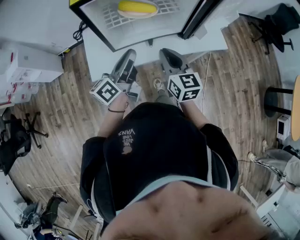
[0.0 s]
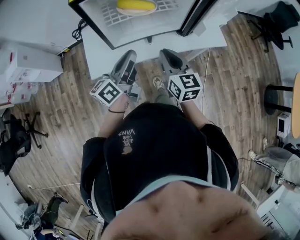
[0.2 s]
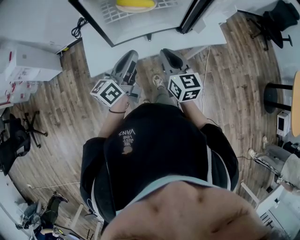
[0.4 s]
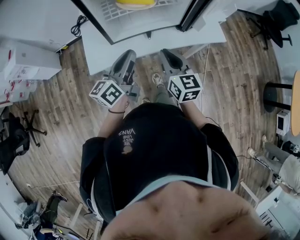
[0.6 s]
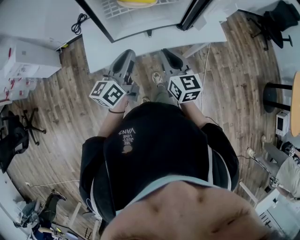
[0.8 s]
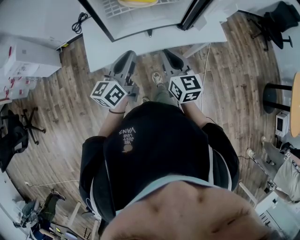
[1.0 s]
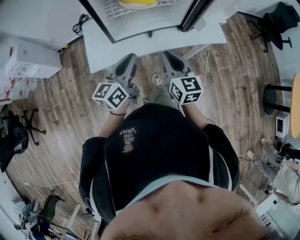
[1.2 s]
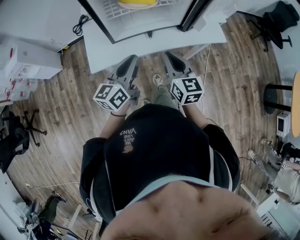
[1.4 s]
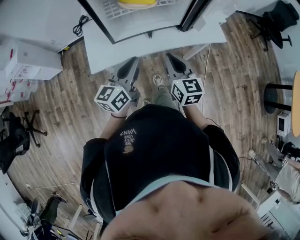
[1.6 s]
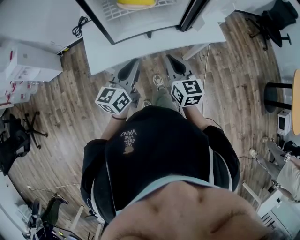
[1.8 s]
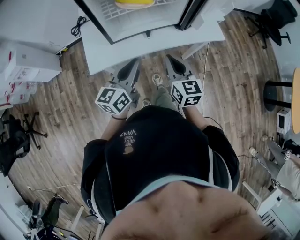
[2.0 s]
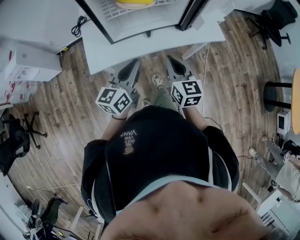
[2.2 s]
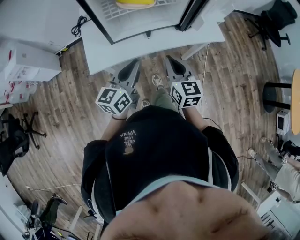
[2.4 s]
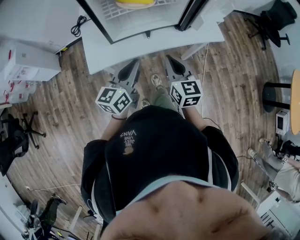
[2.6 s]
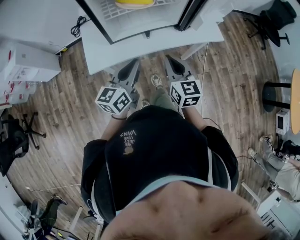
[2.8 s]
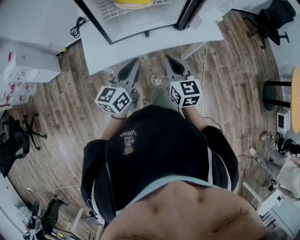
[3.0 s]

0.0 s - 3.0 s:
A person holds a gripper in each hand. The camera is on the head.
0.0 s - 1.6 s: The two grippers go about 5 cm backward. The left gripper rotates roughly 30 degrees.
1.6 s - 3.0 s: There are only small adjustments of the grippers.

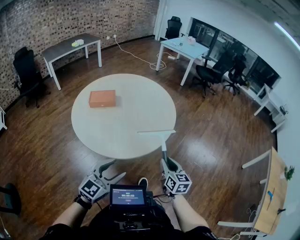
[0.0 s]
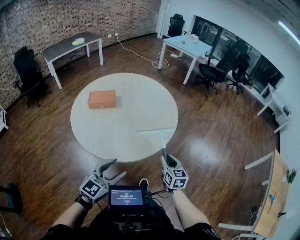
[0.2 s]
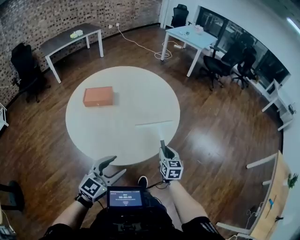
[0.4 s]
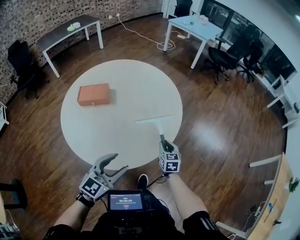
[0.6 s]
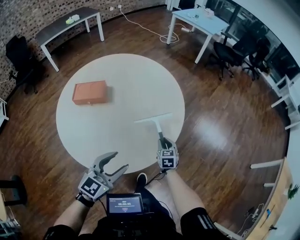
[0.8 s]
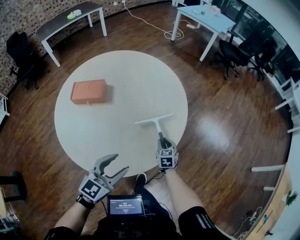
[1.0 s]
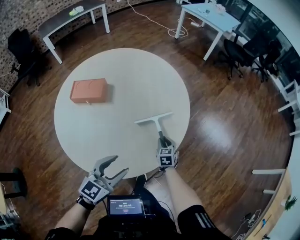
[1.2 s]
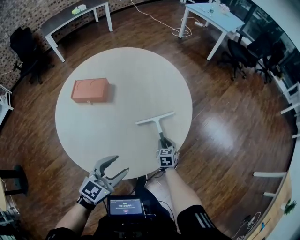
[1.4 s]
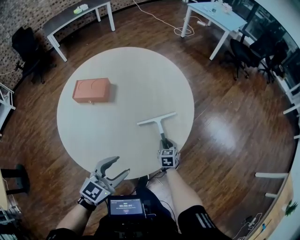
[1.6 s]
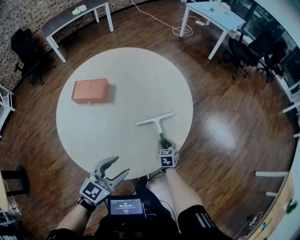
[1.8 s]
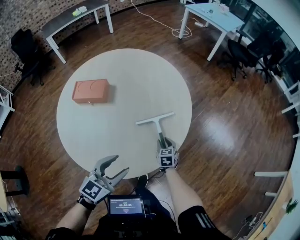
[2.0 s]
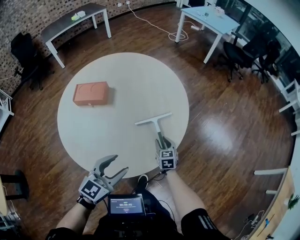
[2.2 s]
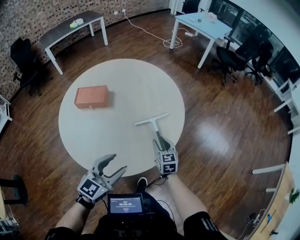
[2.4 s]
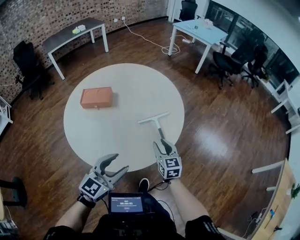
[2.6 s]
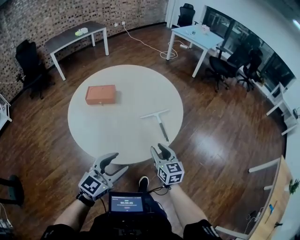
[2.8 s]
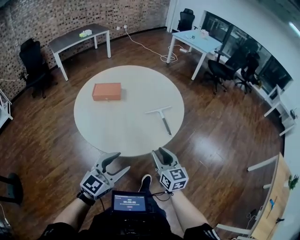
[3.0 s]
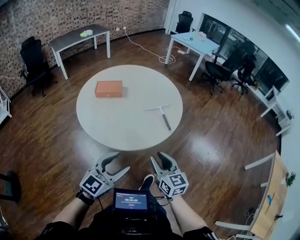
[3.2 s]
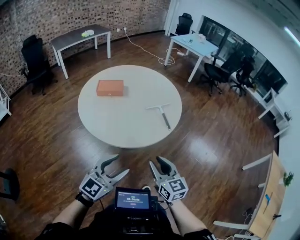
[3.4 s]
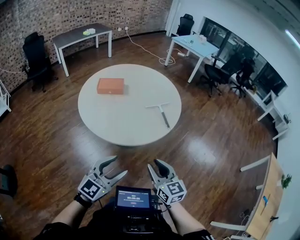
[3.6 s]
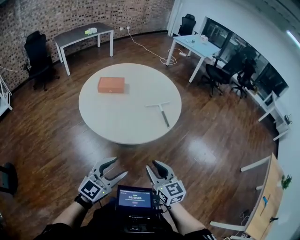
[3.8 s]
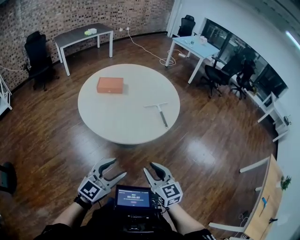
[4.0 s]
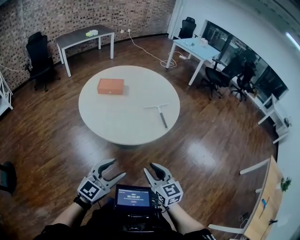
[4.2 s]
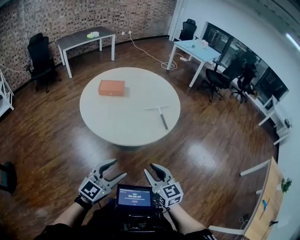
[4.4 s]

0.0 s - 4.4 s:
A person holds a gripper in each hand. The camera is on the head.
0.0 s - 1.4 s: The right gripper is displaced forward and downward by some 50 cm, and rotates roughly 30 degrees; the left gripper is displaced forward by some 30 cm.
1.4 s - 3.0 s: The right gripper goes about 40 cm backward and upward, and tips its fingers upward by about 30 degrees. The left gripper moves backward and upward, about 25 cm.
3.0 s - 4.4 s: Both grippers move backward, roughly 15 cm.

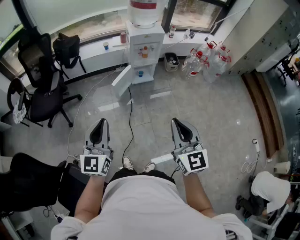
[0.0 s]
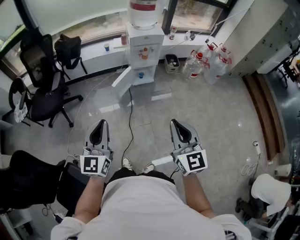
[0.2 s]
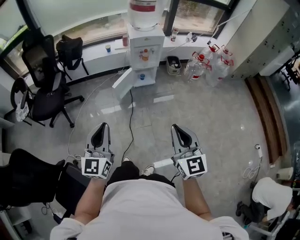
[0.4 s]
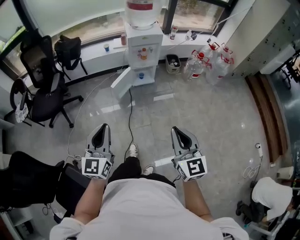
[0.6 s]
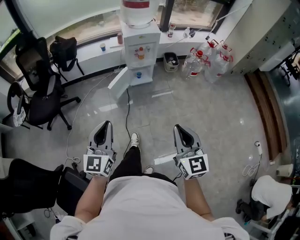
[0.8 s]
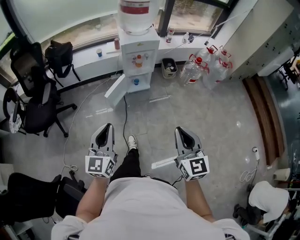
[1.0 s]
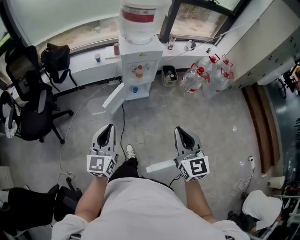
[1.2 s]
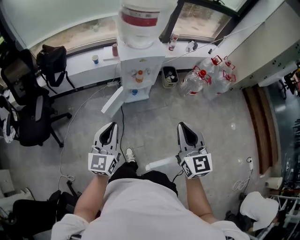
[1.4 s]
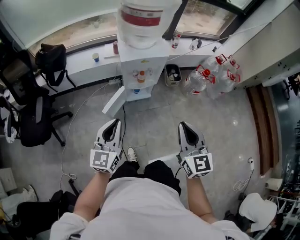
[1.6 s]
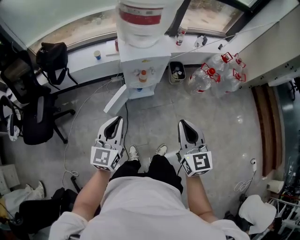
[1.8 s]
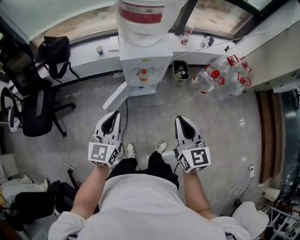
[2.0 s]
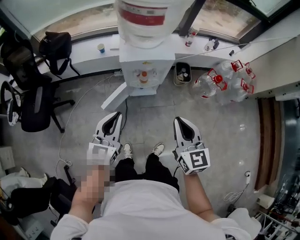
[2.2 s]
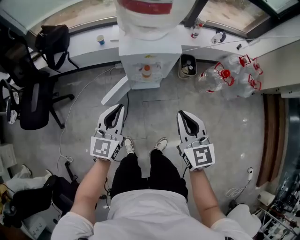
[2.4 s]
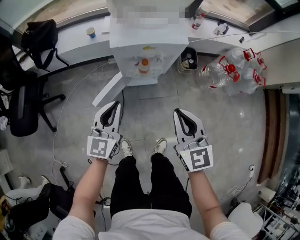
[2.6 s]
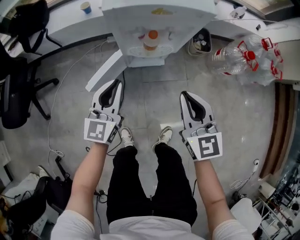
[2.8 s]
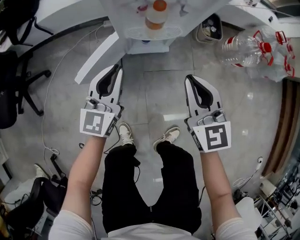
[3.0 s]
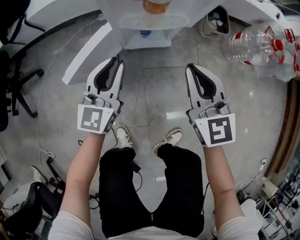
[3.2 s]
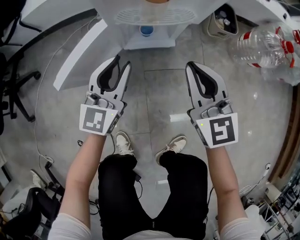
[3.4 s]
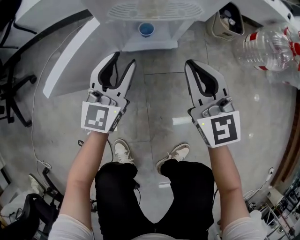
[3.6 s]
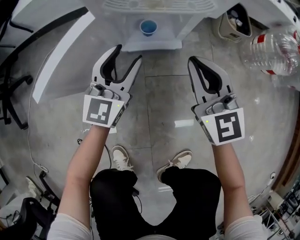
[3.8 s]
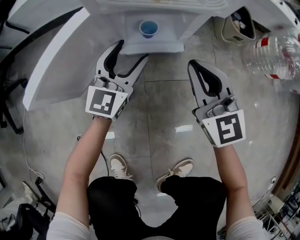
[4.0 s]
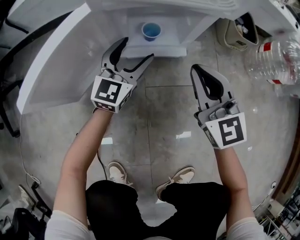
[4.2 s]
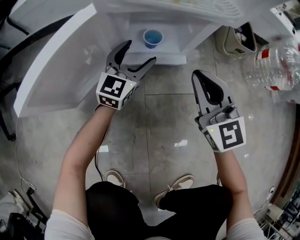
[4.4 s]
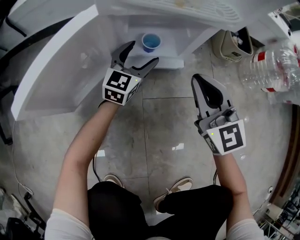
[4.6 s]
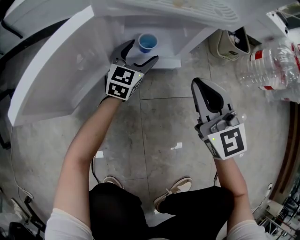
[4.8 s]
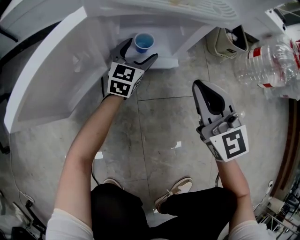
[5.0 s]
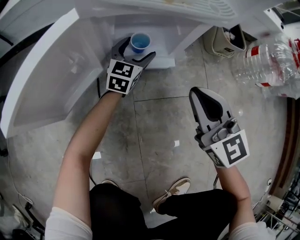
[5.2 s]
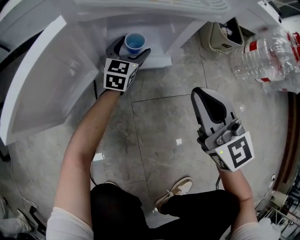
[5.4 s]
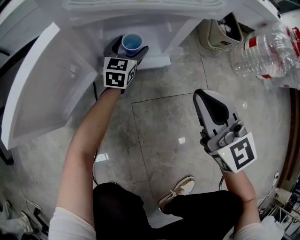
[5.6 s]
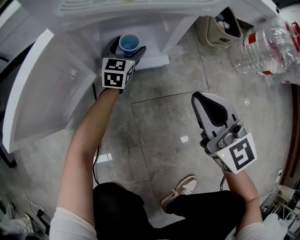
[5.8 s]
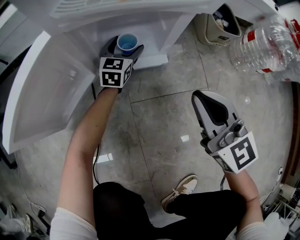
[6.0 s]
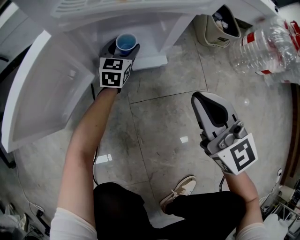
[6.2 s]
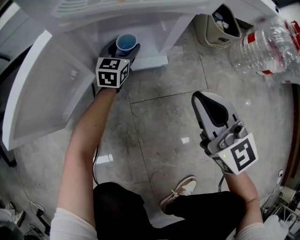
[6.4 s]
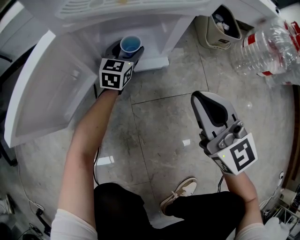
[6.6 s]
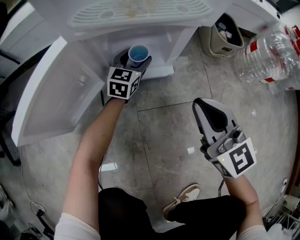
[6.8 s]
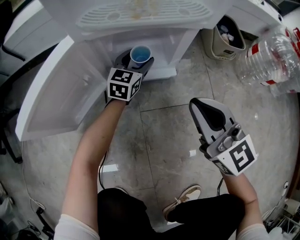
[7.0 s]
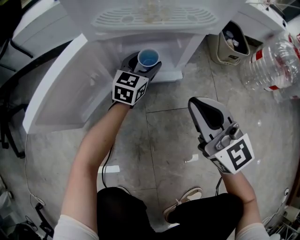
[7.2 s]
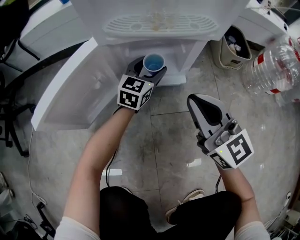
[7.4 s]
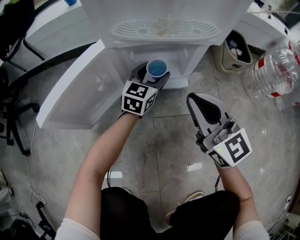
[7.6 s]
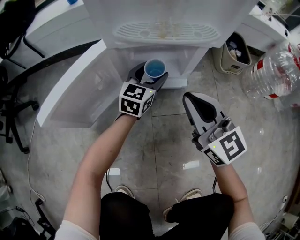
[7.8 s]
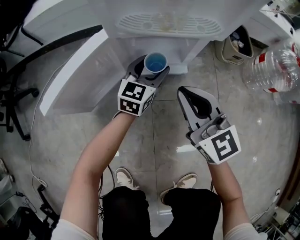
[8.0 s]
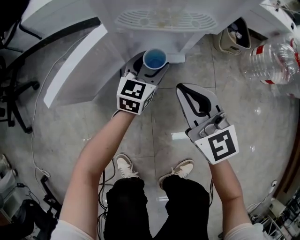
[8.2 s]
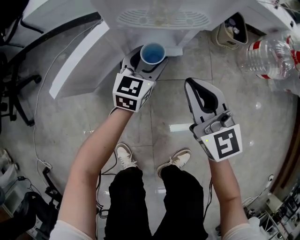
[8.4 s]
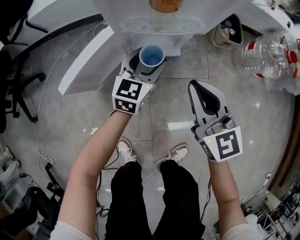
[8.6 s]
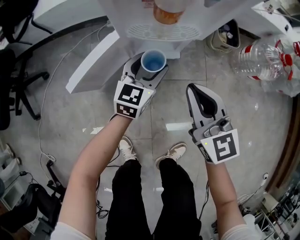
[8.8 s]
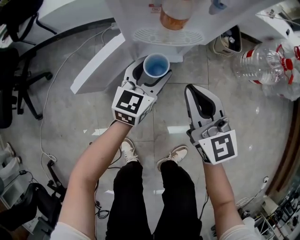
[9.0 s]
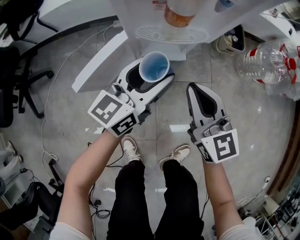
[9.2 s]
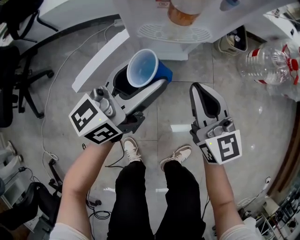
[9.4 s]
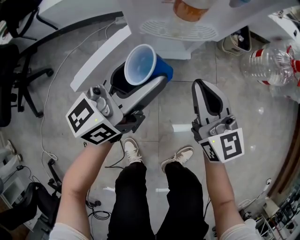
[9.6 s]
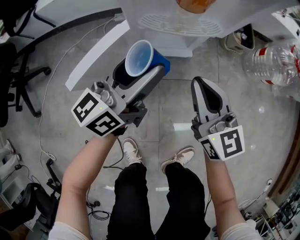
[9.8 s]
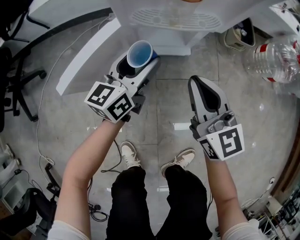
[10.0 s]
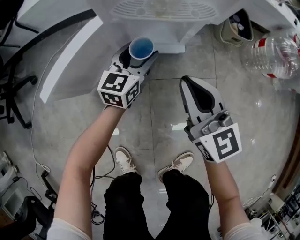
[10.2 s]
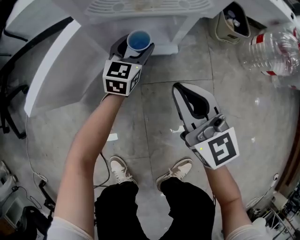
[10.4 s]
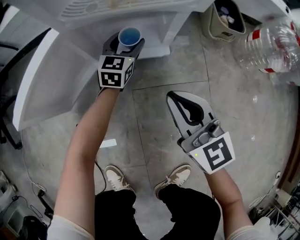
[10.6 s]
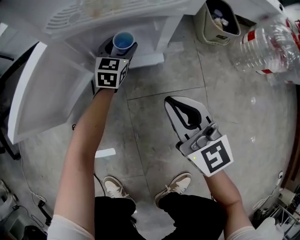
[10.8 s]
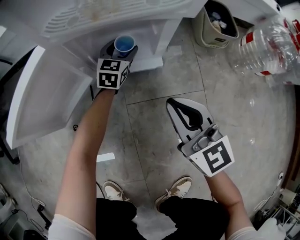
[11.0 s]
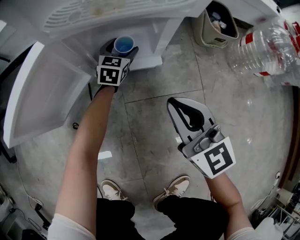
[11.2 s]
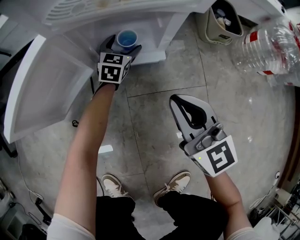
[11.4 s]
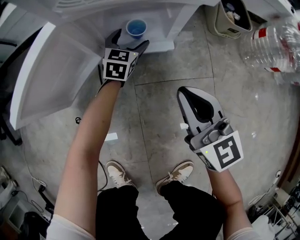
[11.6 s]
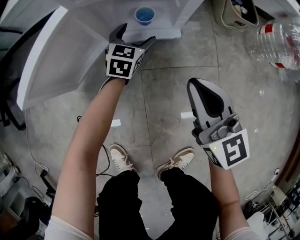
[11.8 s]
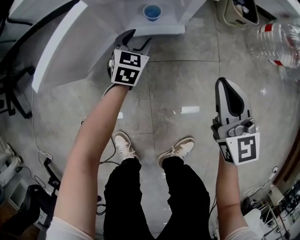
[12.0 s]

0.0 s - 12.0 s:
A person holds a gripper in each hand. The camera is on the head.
0.0 s - 1.6 s: The grippers both shift forward by some 35 cm.
1.6 s - 3.0 s: Both grippers travel together downward and forward, some 40 cm.
3.0 s - 4.4 s: Both grippers move downward, about 35 cm. The left gripper opens.
4.4 s - 6.0 s: The right gripper shifts by some 5 cm; the left gripper goes roughly 15 cm forward and downward.
6.0 s - 7.6 s: The left gripper travels upward and backward by about 10 cm, while the right gripper goes some 5 cm to the left.
7.6 s - 9.0 s: The right gripper travels upward by roughly 15 cm. The left gripper travels upward and backward by some 25 cm.
9.0 s - 10.4 s: The right gripper moves downward, roughly 15 cm; the left gripper shifts roughly 25 cm downward and forward.
10.4 s - 12.0 s: The left gripper moves backward, approximately 5 cm, while the right gripper shifts roughly 10 cm to the right.

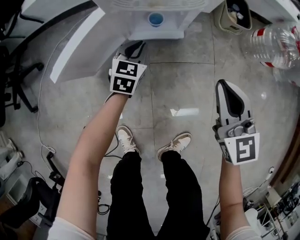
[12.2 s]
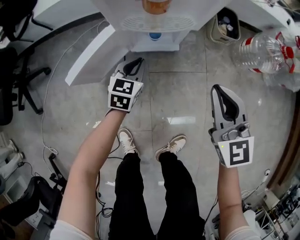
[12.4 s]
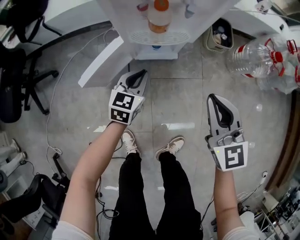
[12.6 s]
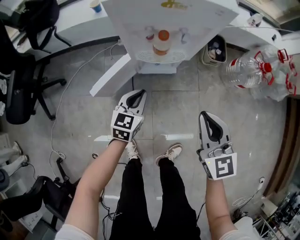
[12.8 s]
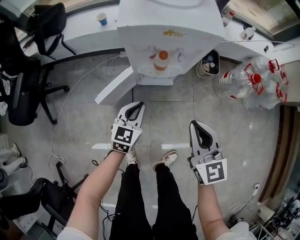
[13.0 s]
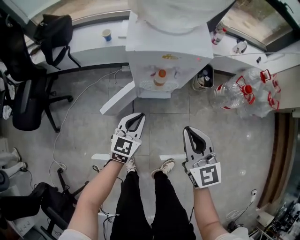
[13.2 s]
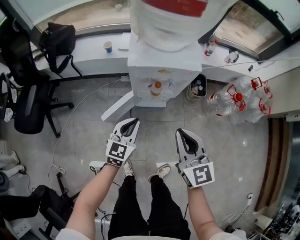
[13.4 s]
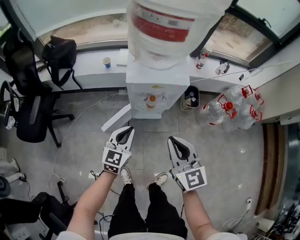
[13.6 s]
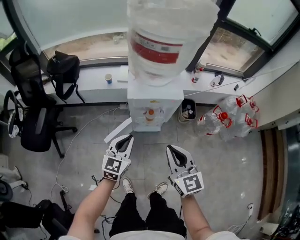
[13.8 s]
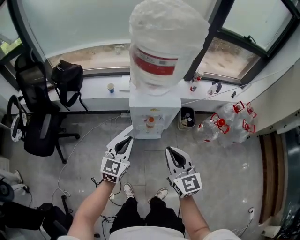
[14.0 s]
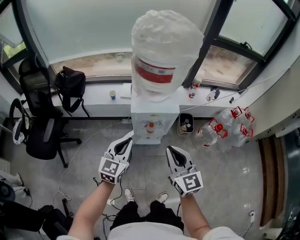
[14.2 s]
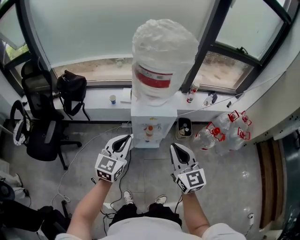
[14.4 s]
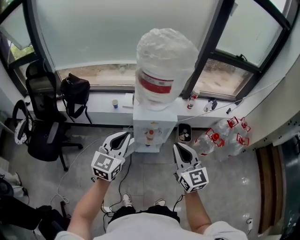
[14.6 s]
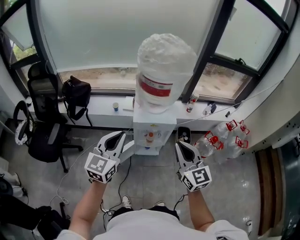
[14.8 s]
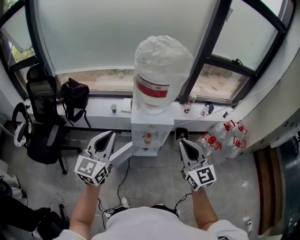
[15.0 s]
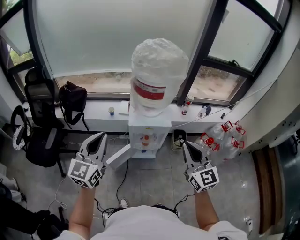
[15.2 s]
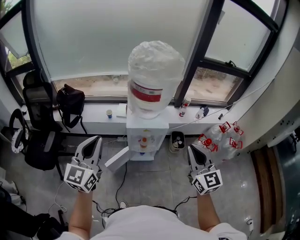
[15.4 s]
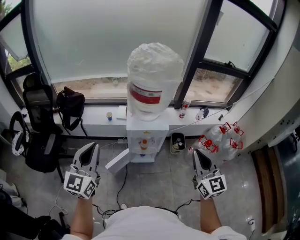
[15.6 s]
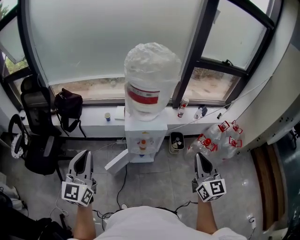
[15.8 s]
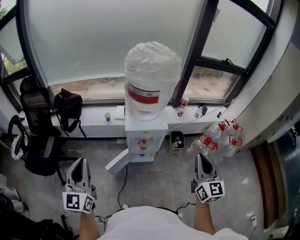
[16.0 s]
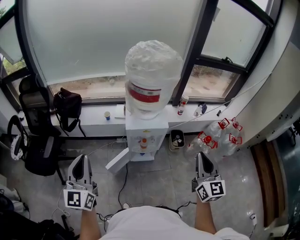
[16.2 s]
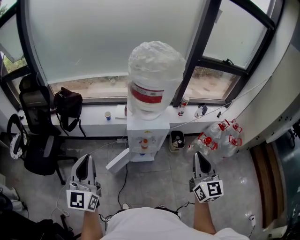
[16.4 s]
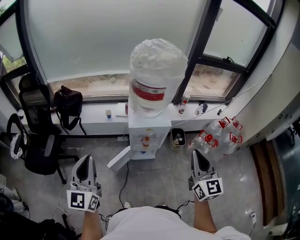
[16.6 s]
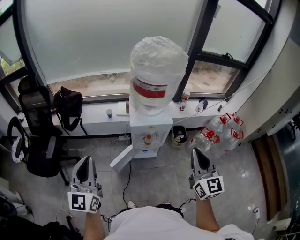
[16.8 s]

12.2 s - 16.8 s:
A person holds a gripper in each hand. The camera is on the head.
12.2 s - 13.8 s: Both grippers move upward, some 50 cm.
13.8 s - 15.2 s: Both grippers move upward, some 25 cm. The left gripper turns by approximately 20 degrees.
15.2 s - 16.8 s: The left gripper is displaced to the left and backward by some 10 cm. Meanwhile the right gripper travels to the right and back again, some 10 cm each way.
